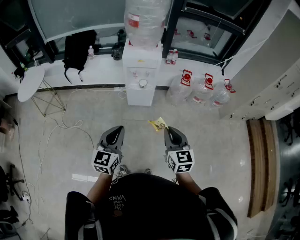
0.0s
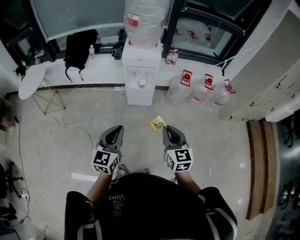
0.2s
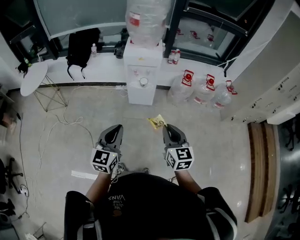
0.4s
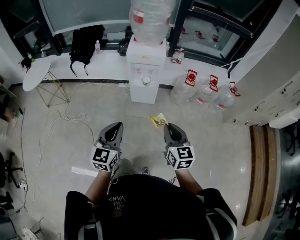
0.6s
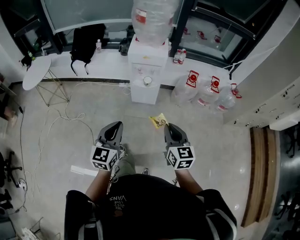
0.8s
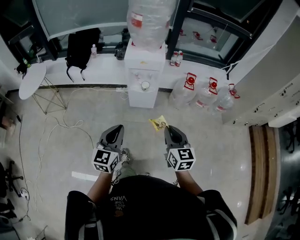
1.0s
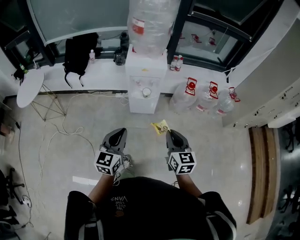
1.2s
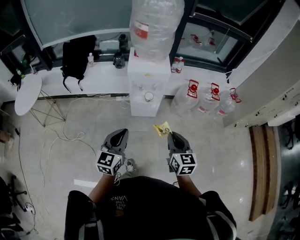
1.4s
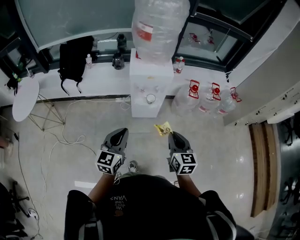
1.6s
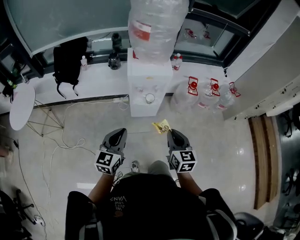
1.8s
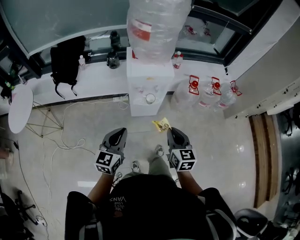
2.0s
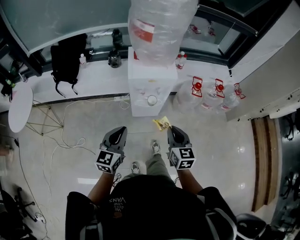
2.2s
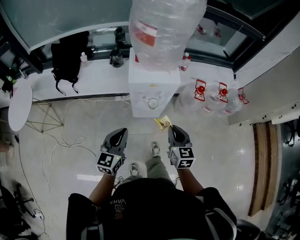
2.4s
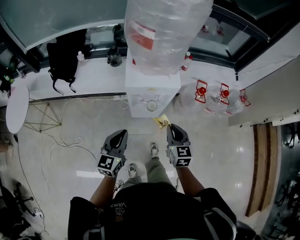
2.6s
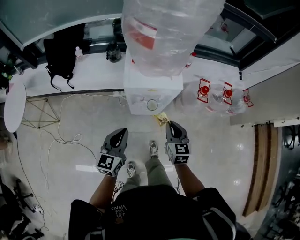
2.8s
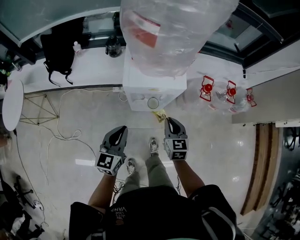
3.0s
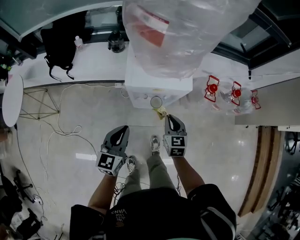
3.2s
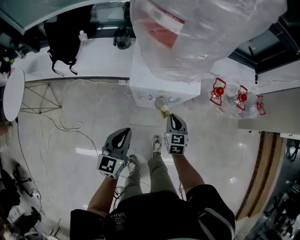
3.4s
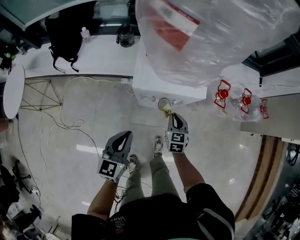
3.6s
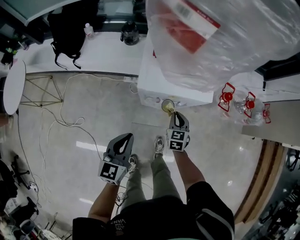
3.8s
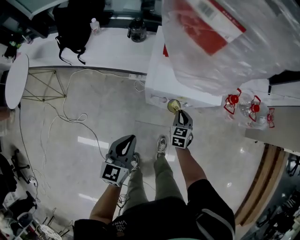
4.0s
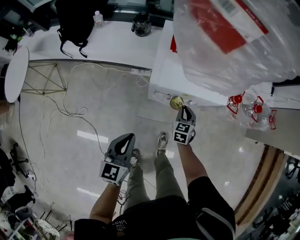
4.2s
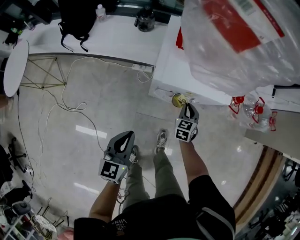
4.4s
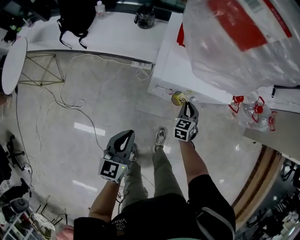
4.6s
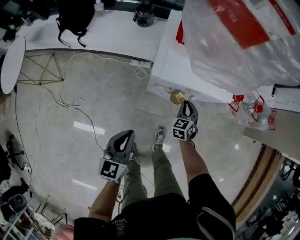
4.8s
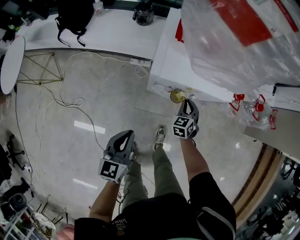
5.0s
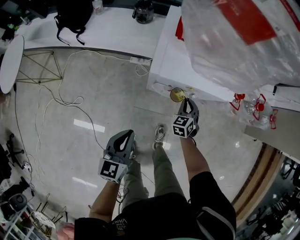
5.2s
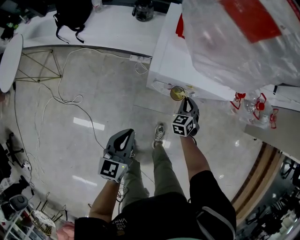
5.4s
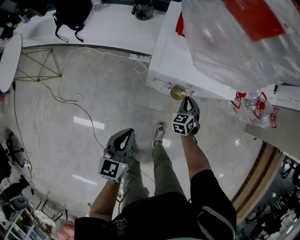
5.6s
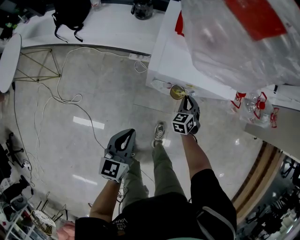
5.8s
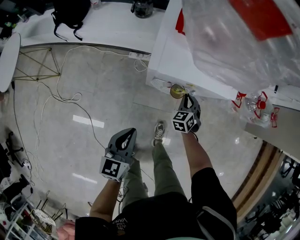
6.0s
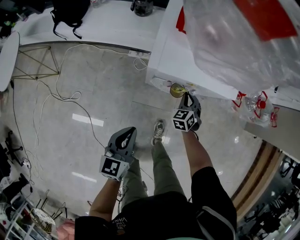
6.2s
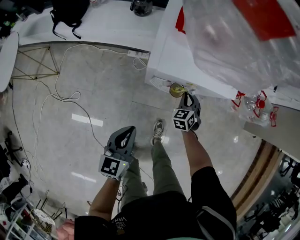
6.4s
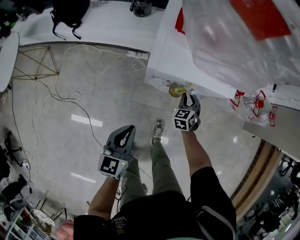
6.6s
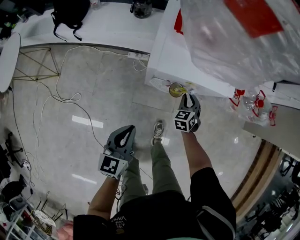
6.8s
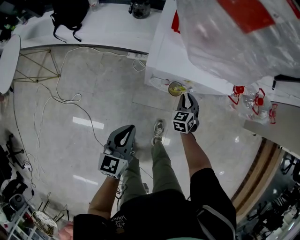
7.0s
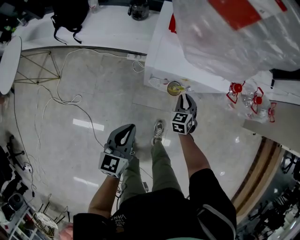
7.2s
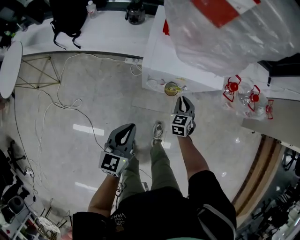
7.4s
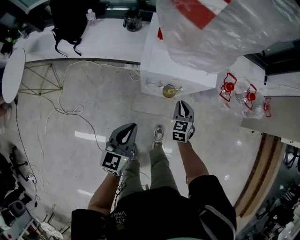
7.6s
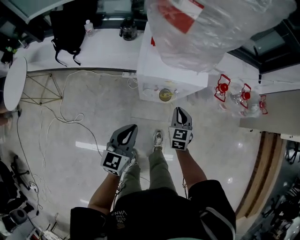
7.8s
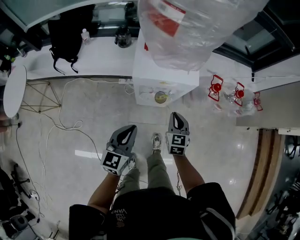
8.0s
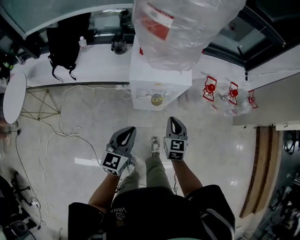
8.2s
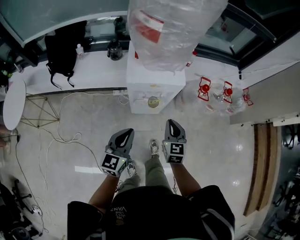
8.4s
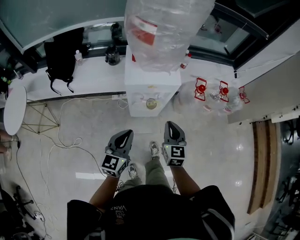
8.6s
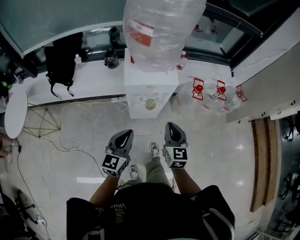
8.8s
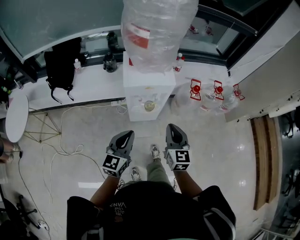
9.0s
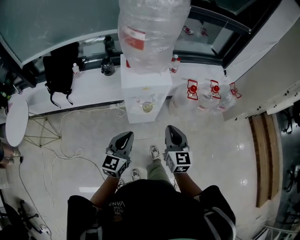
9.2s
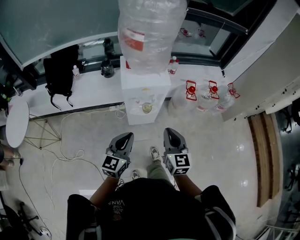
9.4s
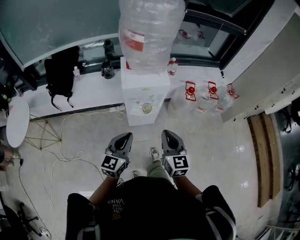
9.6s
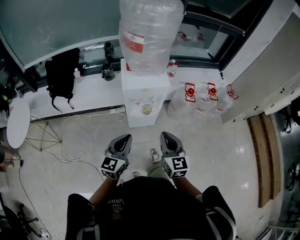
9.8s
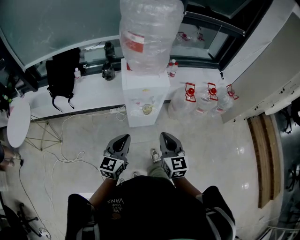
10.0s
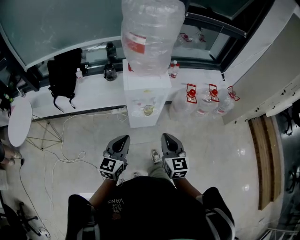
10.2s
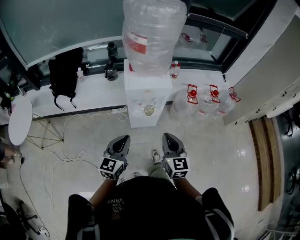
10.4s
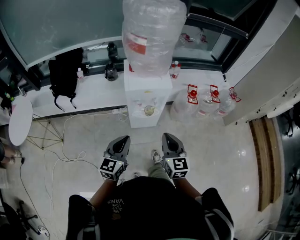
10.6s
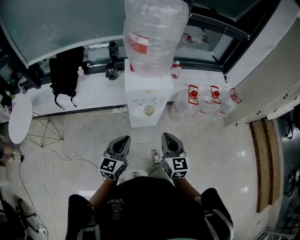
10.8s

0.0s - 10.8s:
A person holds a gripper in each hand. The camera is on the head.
0.0s - 1.6s: Both grippers travel together forward and to the left, about 20 cm.
1.6s - 3.0s: The left gripper goes some 30 cm forward. Meanwhile the right gripper is displaced forward and downward by some 35 cm.
3.0s - 4.6s: The right gripper is displaced downward and forward by about 25 cm, and swivels roughly 20 degrees; the left gripper is displaced downward and to the left by about 15 cm.
4.6s - 6.2s: The right gripper goes roughly 5 cm downward, while the left gripper shifts by about 5 cm.
6.2s - 7.8s: The left gripper moves upward, approximately 10 cm, while the right gripper travels upward and backward by some 20 cm, and turns by some 30 degrees.
7.8s - 9.2s: The left gripper moves upward and backward, some 15 cm; the right gripper is displaced upward and backward by roughly 30 cm, and changes its angle by approximately 30 degrees.
9.2s - 10.8s: The right gripper moves roughly 5 cm.

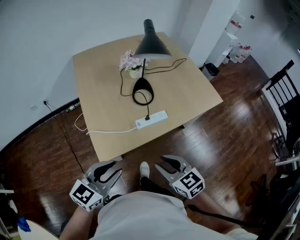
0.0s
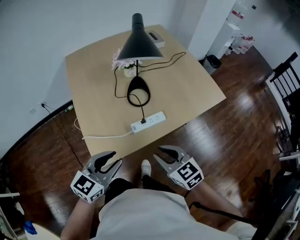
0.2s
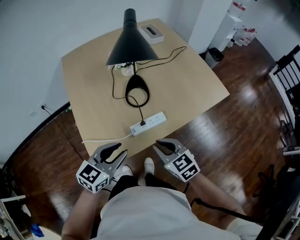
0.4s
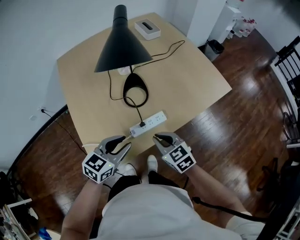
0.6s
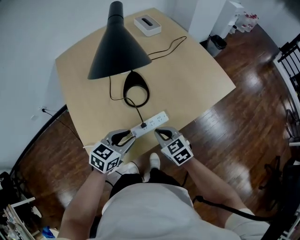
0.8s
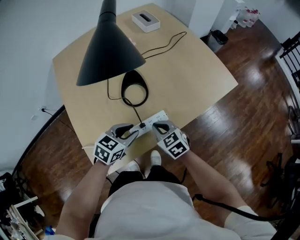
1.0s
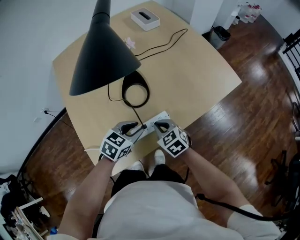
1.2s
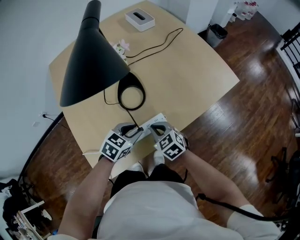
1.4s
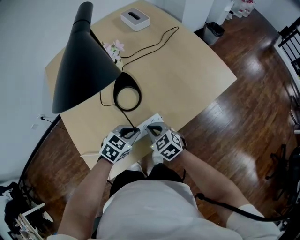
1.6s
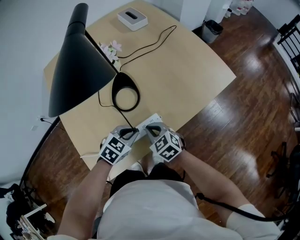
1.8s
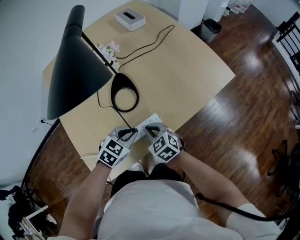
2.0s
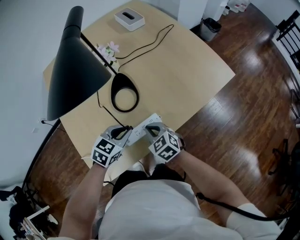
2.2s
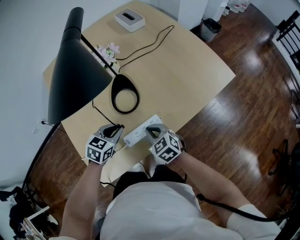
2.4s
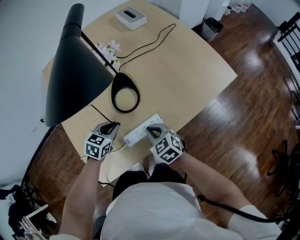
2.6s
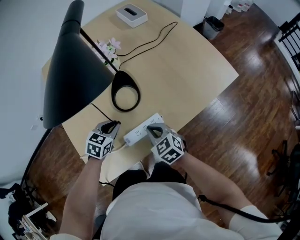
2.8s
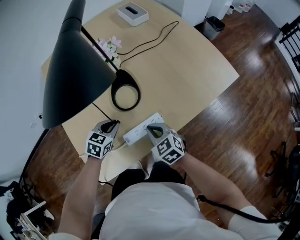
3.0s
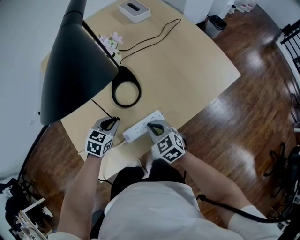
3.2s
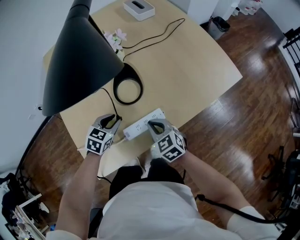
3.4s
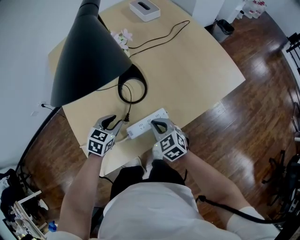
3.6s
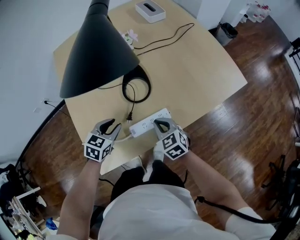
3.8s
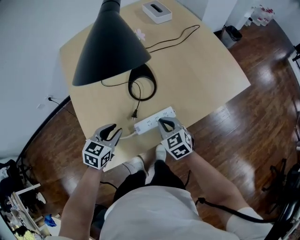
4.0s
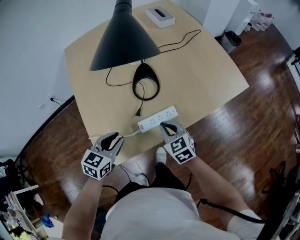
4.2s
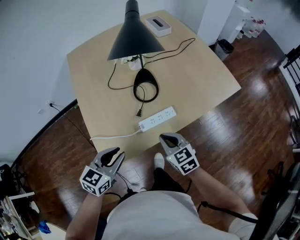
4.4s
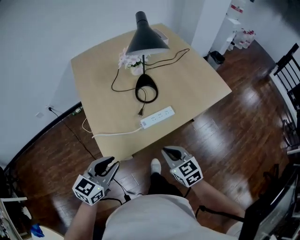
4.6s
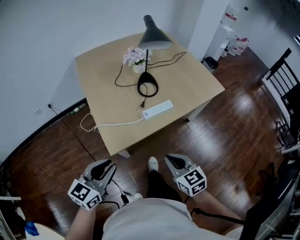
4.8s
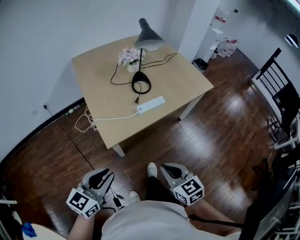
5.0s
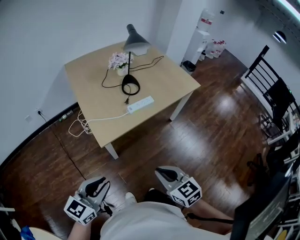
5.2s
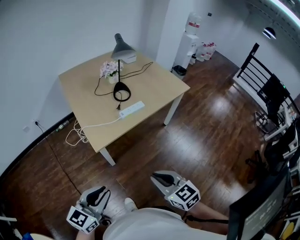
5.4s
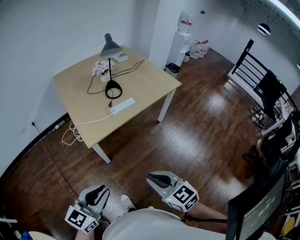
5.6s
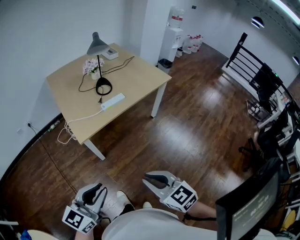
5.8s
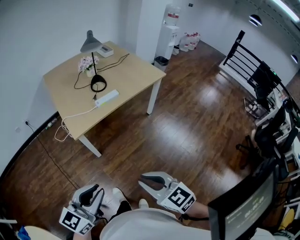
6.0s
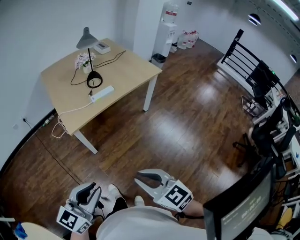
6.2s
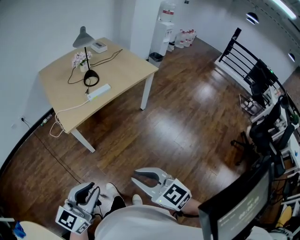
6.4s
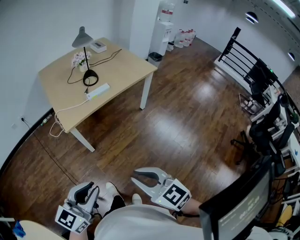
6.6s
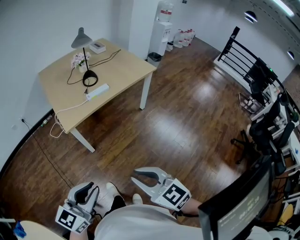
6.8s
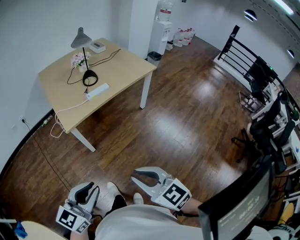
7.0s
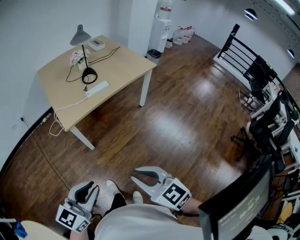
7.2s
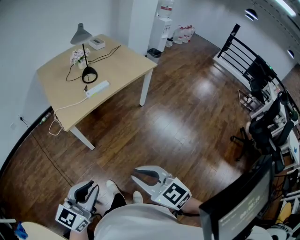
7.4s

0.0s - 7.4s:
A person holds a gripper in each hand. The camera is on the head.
0.0s - 1.4s: The two grippers go some 30 cm forward and downward. The right gripper closes its fingers. The left gripper swivels some 30 degrees.
1.4s - 3.0s: The left gripper heads to the left, covering some 10 cm.
3.0s - 4.4s: The left gripper goes approximately 25 cm backward and upward, and turns by some 20 degrees. Meanwhile the right gripper heads backward and upward, covering roughly 10 cm.
4.4s - 6.0s: Both grippers are carried backward, approximately 50 cm. The left gripper turns by roughly 20 degrees.
6.0s - 7.4s: The grippers make only small movements.

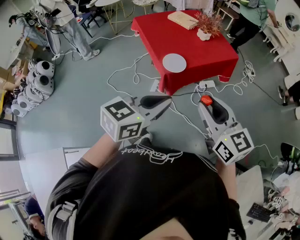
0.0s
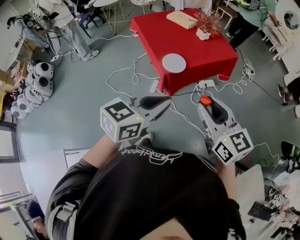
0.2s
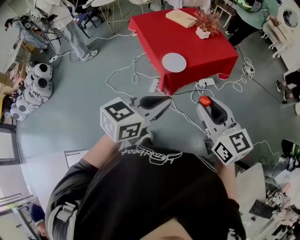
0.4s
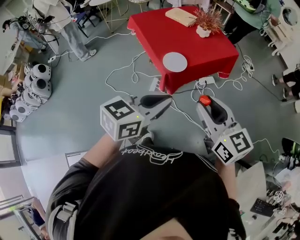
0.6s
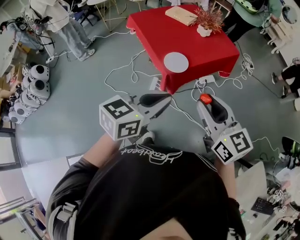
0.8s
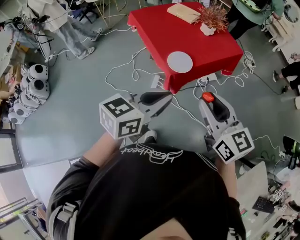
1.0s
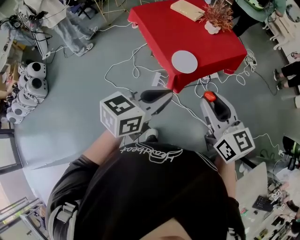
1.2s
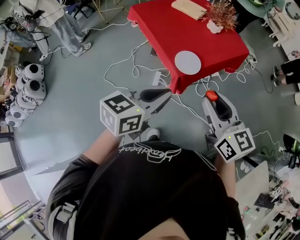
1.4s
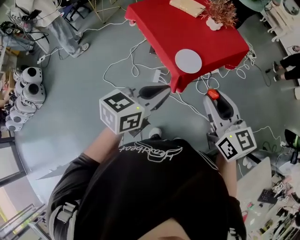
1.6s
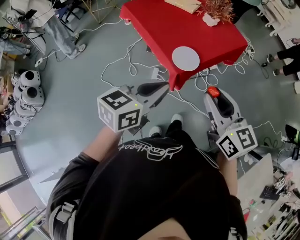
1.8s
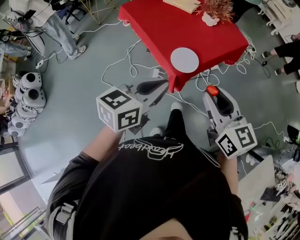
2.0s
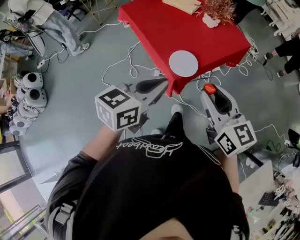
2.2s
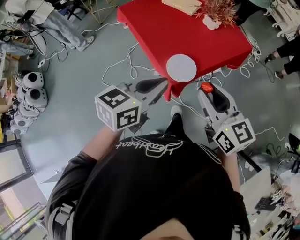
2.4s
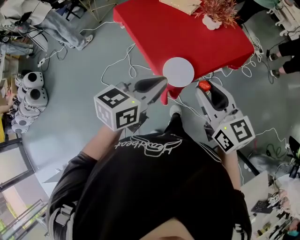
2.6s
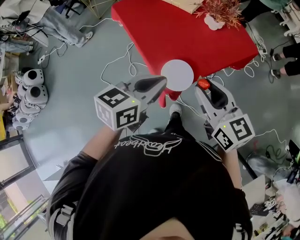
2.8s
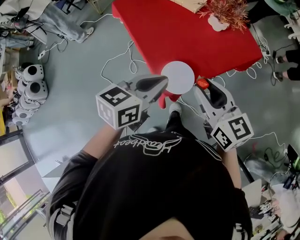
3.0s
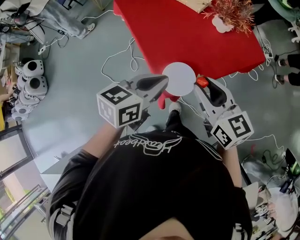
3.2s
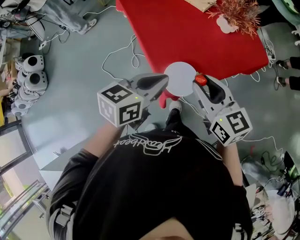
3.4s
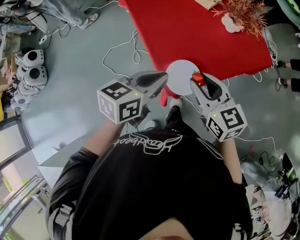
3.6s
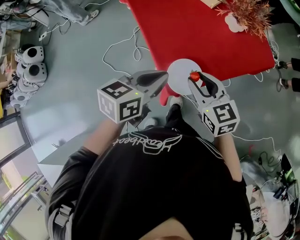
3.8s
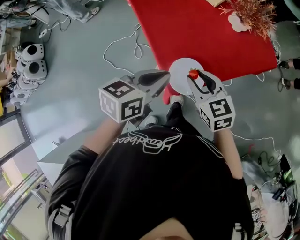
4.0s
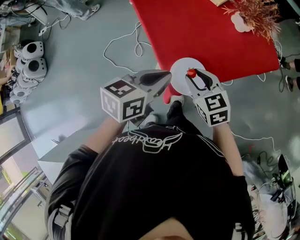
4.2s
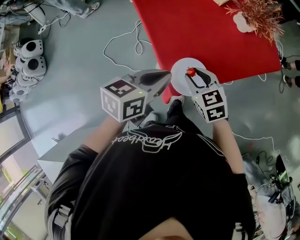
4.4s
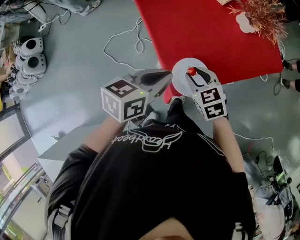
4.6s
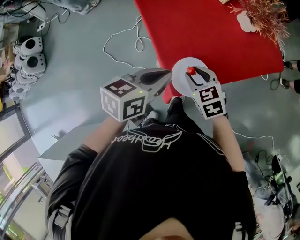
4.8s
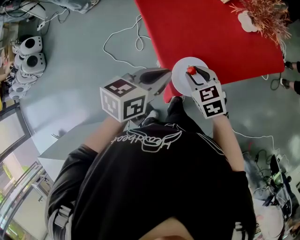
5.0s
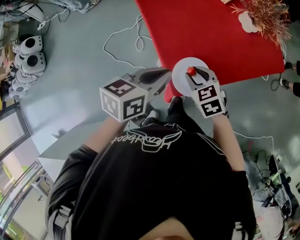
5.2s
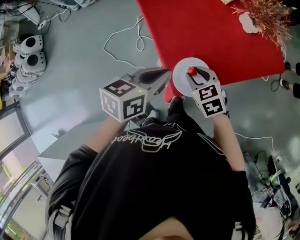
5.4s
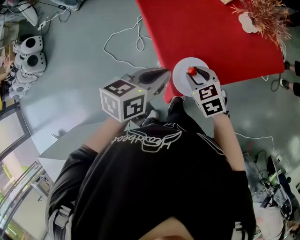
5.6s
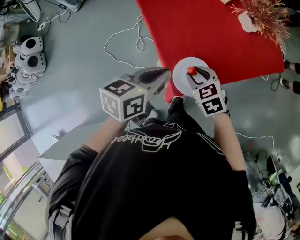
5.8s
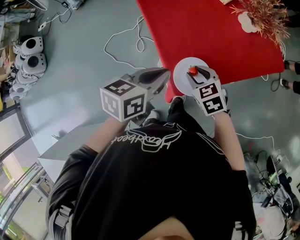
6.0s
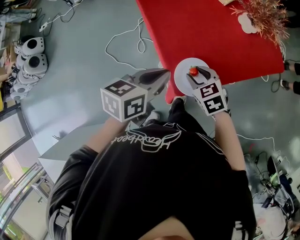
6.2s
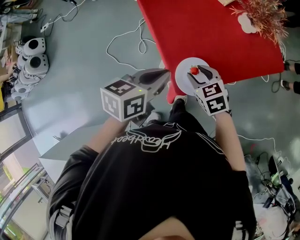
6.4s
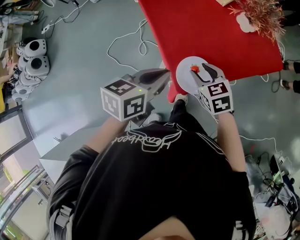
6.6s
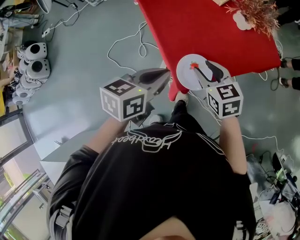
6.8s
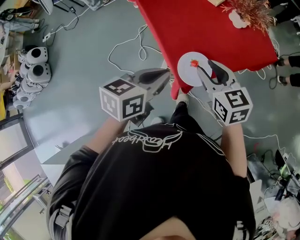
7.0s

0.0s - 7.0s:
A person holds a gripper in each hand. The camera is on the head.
0.0s - 1.4s: The grippers both shift to the left and forward by roughly 15 cm.
1.4s - 2.8s: Both grippers move forward, roughly 20 cm.
2.8s - 4.2s: The right gripper is displaced downward and forward by approximately 20 cm, and changes its angle by roughly 30 degrees. The left gripper goes about 10 cm downward and forward.
4.2s - 5.6s: The right gripper heads downward, covering roughly 5 cm.
5.6s - 7.0s: The right gripper shifts roughly 15 cm upward, and swivels roughly 30 degrees. The left gripper is displaced backward and upward by some 10 cm.
